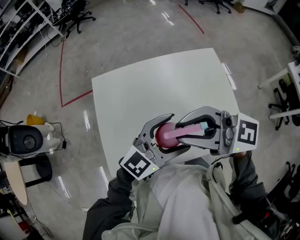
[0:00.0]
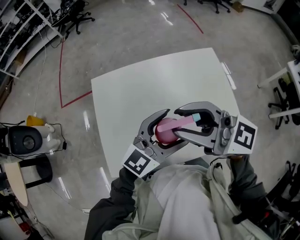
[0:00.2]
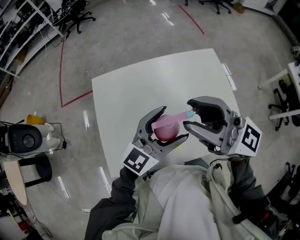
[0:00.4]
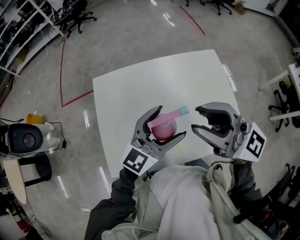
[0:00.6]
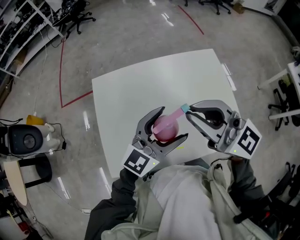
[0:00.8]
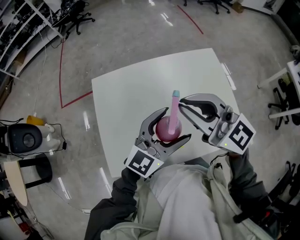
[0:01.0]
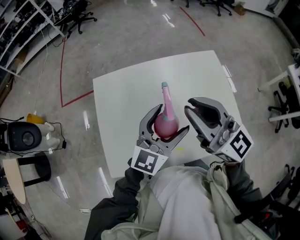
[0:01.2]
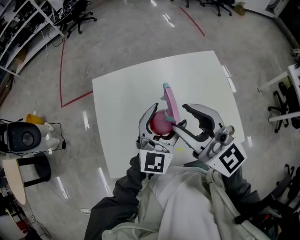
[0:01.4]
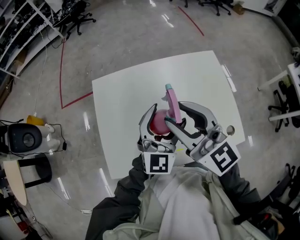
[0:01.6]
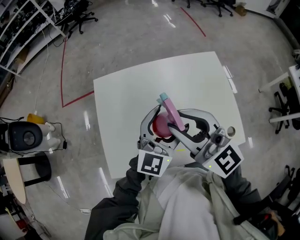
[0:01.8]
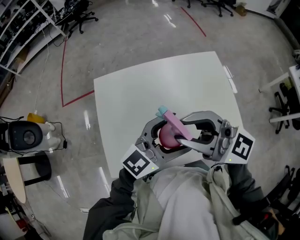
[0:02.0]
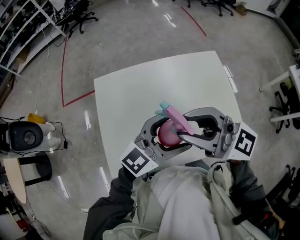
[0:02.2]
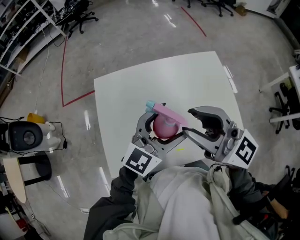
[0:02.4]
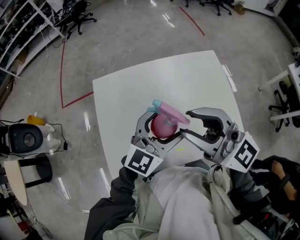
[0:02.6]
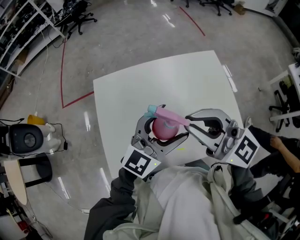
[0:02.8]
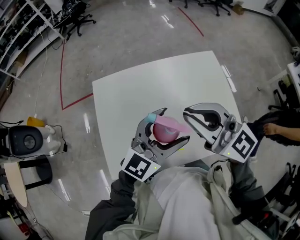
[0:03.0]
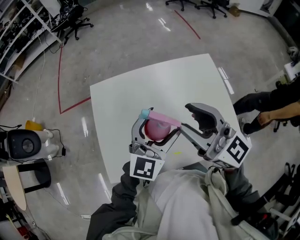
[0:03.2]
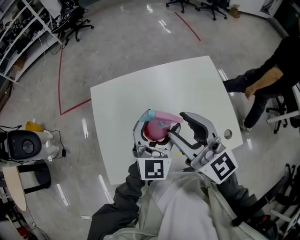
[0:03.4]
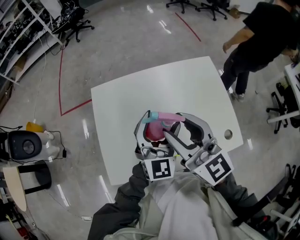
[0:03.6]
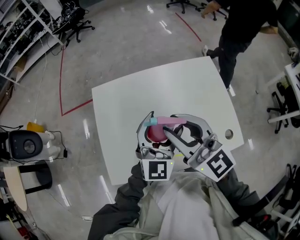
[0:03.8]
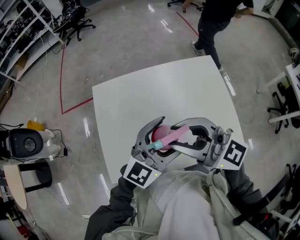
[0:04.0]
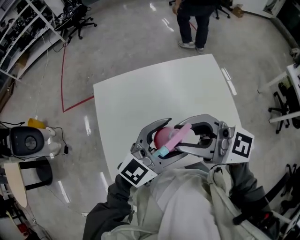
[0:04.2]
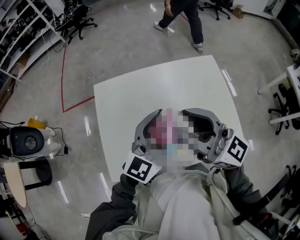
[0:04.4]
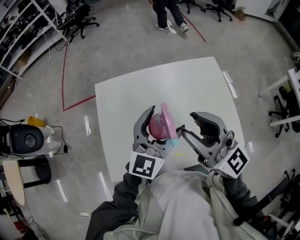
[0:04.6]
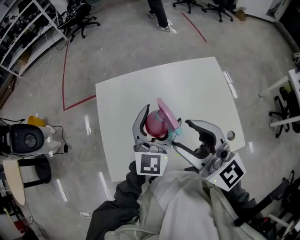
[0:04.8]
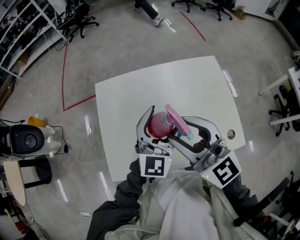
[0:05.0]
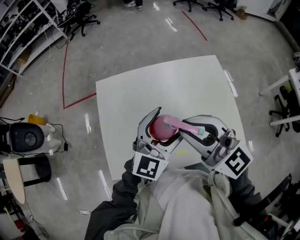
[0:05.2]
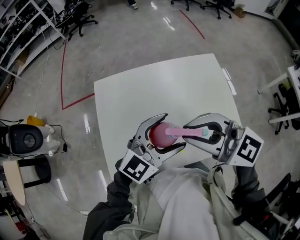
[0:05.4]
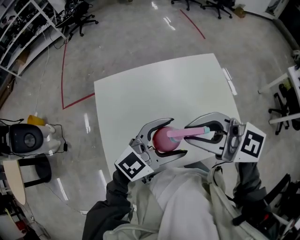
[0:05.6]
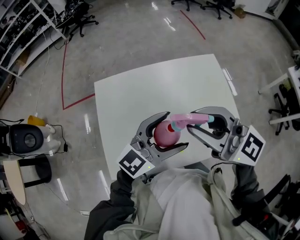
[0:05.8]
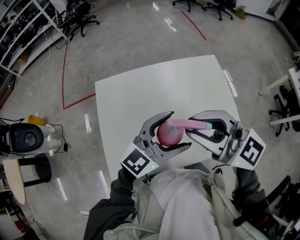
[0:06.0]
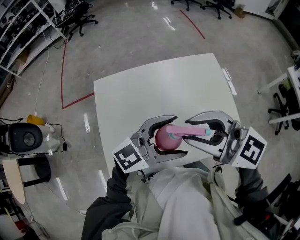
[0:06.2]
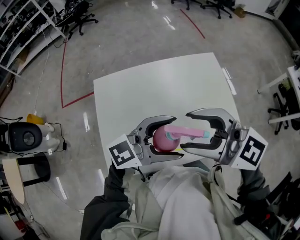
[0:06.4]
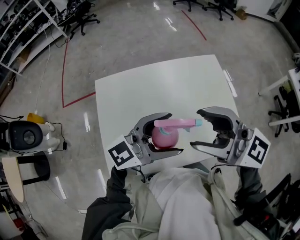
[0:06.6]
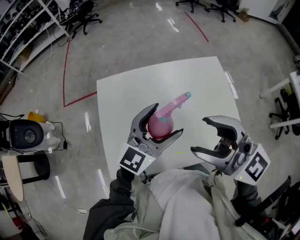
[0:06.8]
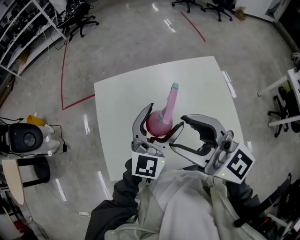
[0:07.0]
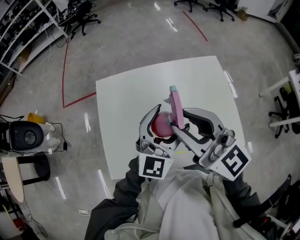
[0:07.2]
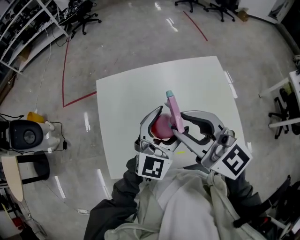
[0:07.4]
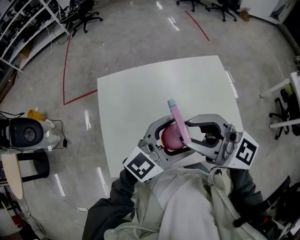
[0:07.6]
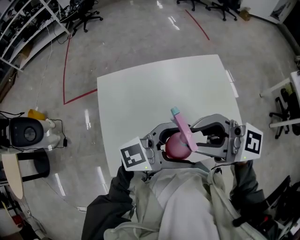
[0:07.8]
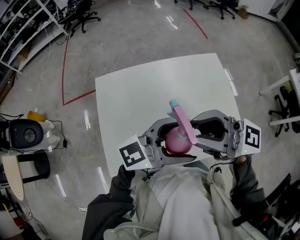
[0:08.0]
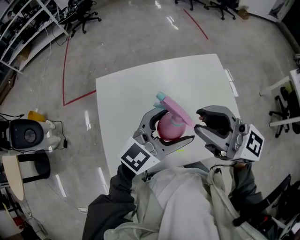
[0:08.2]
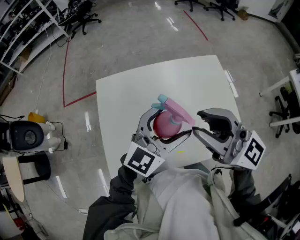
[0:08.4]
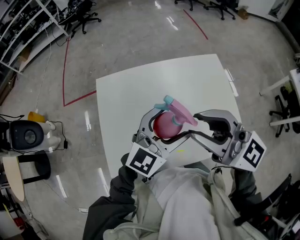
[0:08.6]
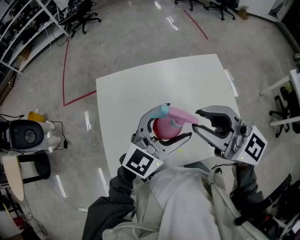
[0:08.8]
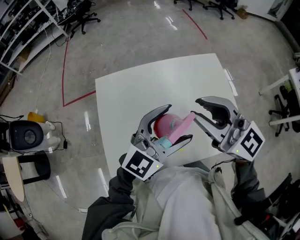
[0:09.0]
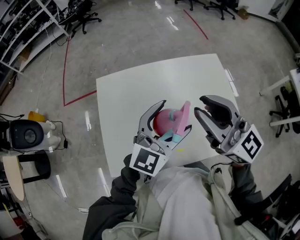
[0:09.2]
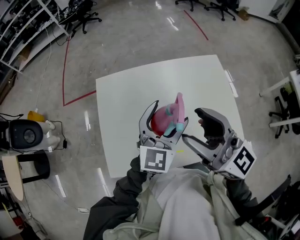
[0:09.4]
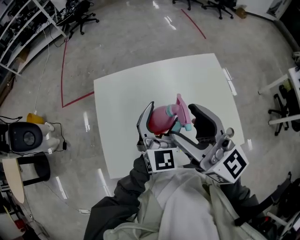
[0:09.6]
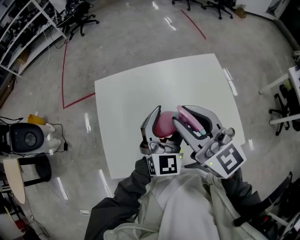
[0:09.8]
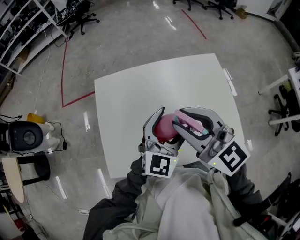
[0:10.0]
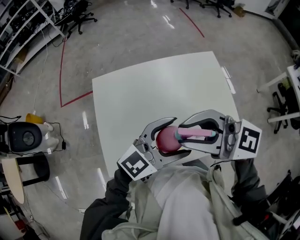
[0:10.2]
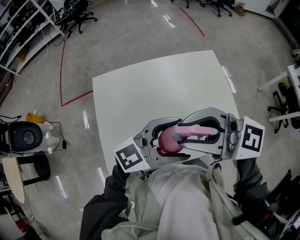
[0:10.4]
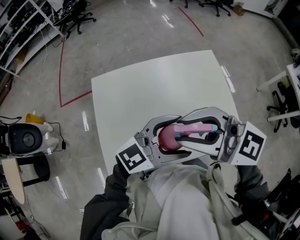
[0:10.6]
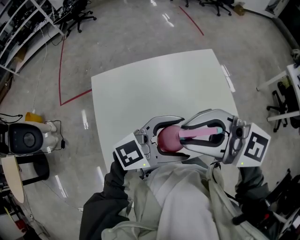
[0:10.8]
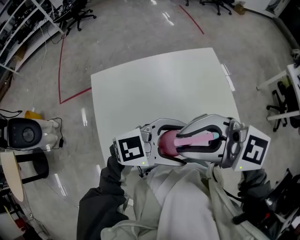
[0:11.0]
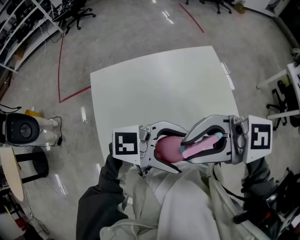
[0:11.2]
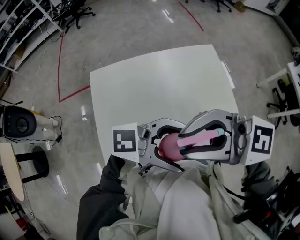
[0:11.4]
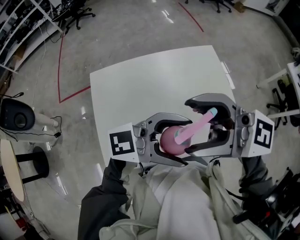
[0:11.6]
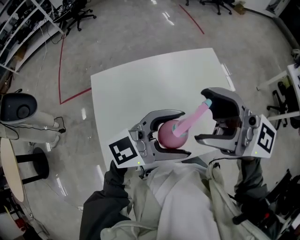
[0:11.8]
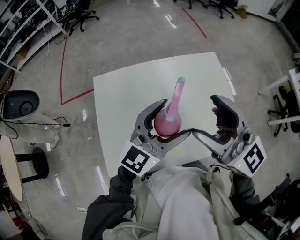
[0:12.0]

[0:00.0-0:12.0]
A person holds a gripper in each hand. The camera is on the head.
0:00.0 to 0:01.6: The right gripper moves some 5 cm, and rotates about 40 degrees. The left gripper moves roughly 10 cm, and changes its angle by roughly 40 degrees.
0:01.6 to 0:03.0: The right gripper closes up, while the left gripper ends up approximately 5 cm from where it was, and swivels about 30 degrees.
0:03.0 to 0:04.4: The right gripper opens up.
0:06.0 to 0:07.6: The right gripper opens, then closes again.
0:07.6 to 0:09.0: The right gripper changes place by approximately 5 cm.
0:09.0 to 0:10.4: The right gripper ends up roughly 5 cm from where it was, swivels some 30 degrees, and opens, then closes once more, while the left gripper changes place by some 5 cm, and swivels some 30 degrees.
0:10.4 to 0:12.0: The left gripper ends up roughly 5 cm from where it was, and changes its angle by approximately 30 degrees. The right gripper ends up approximately 5 cm from where it was, changes its angle by approximately 30 degrees, and opens up.

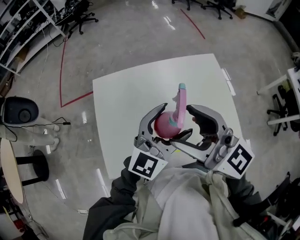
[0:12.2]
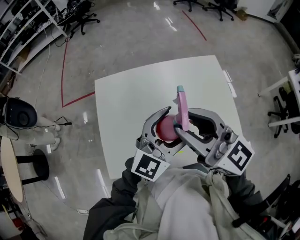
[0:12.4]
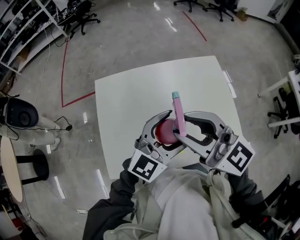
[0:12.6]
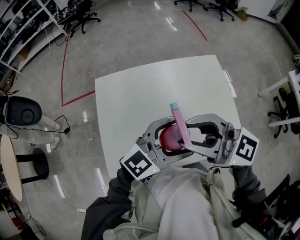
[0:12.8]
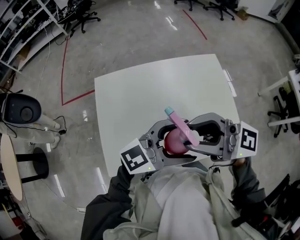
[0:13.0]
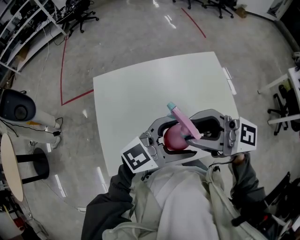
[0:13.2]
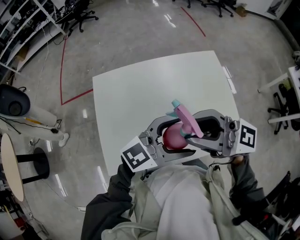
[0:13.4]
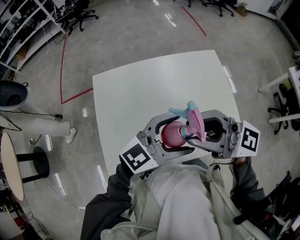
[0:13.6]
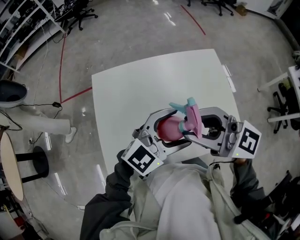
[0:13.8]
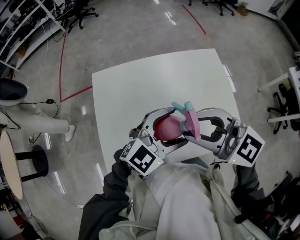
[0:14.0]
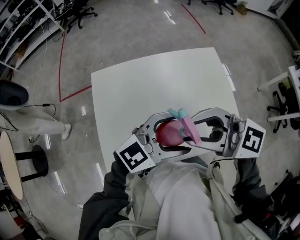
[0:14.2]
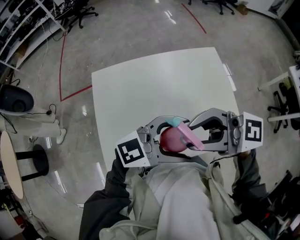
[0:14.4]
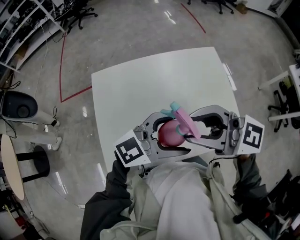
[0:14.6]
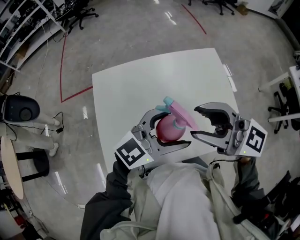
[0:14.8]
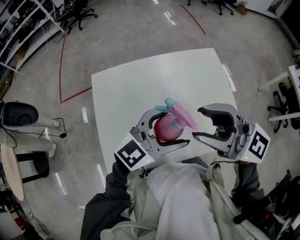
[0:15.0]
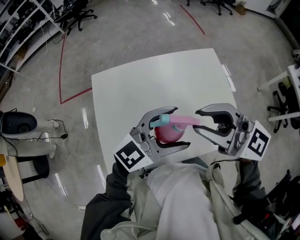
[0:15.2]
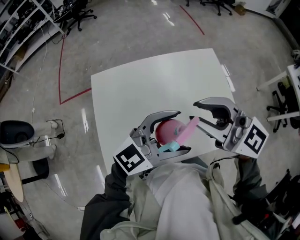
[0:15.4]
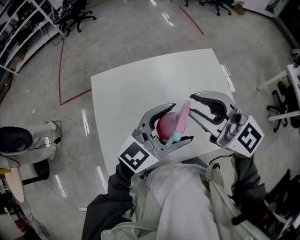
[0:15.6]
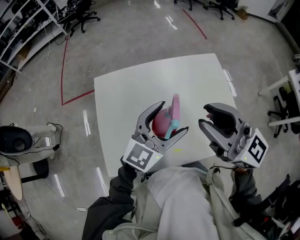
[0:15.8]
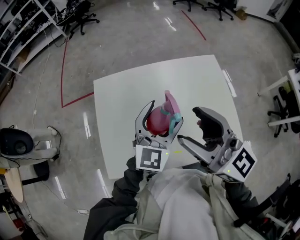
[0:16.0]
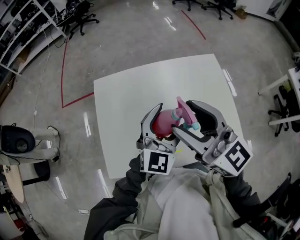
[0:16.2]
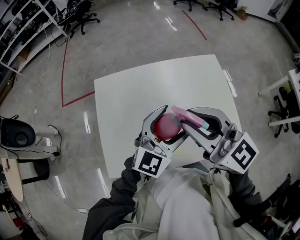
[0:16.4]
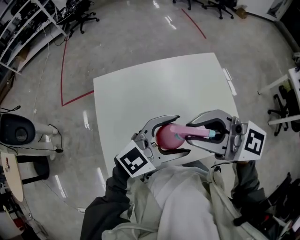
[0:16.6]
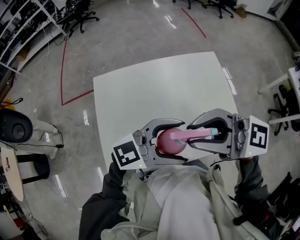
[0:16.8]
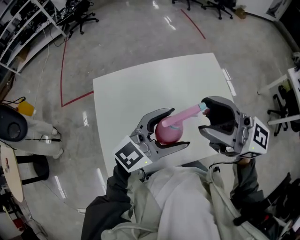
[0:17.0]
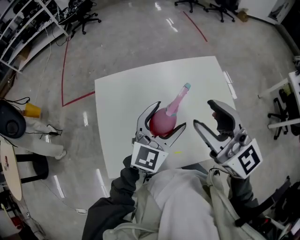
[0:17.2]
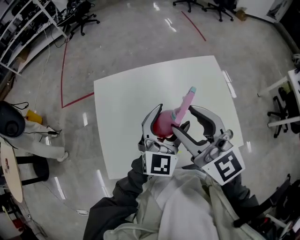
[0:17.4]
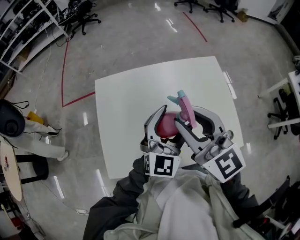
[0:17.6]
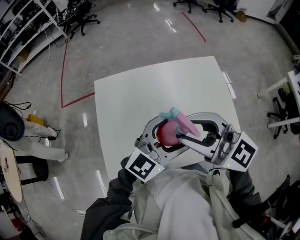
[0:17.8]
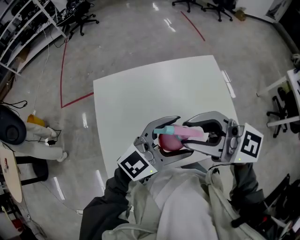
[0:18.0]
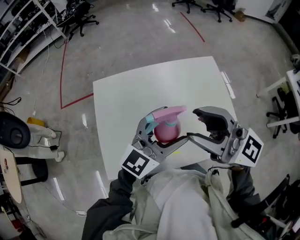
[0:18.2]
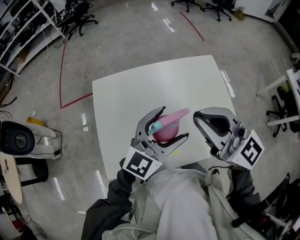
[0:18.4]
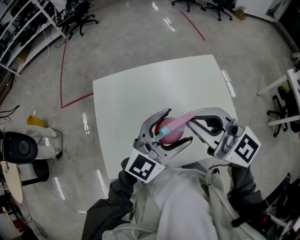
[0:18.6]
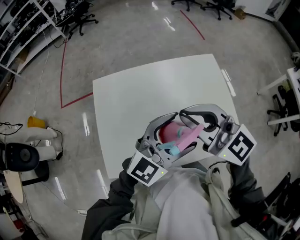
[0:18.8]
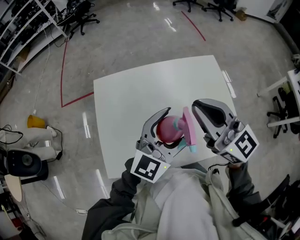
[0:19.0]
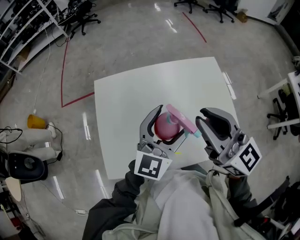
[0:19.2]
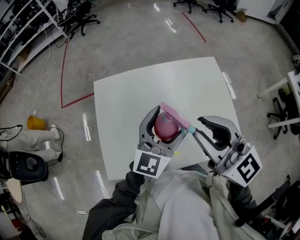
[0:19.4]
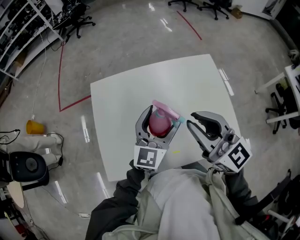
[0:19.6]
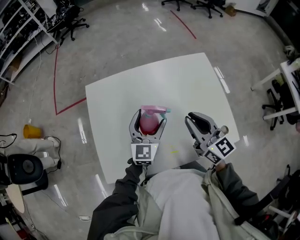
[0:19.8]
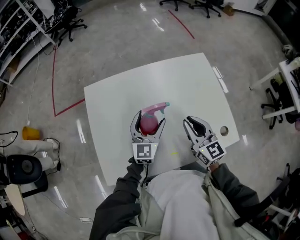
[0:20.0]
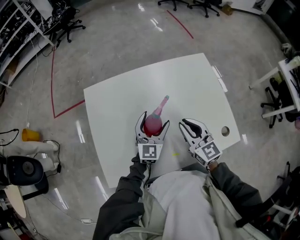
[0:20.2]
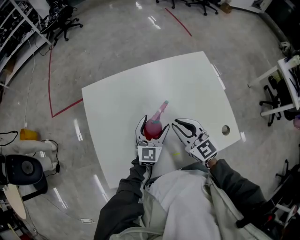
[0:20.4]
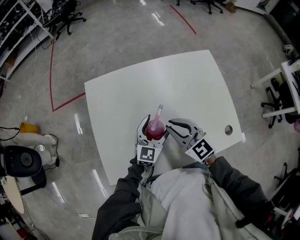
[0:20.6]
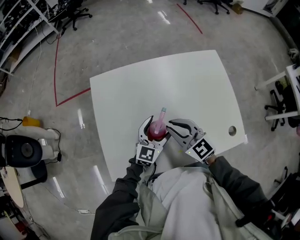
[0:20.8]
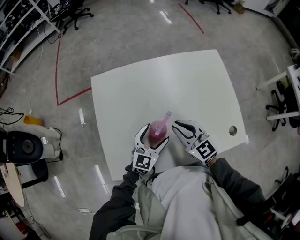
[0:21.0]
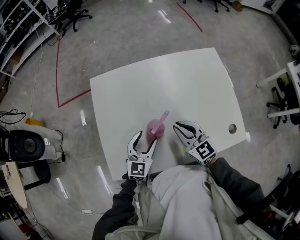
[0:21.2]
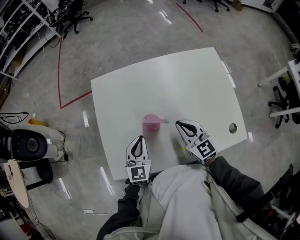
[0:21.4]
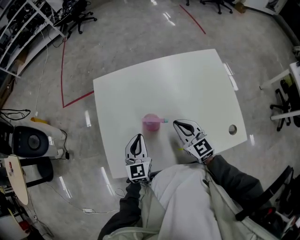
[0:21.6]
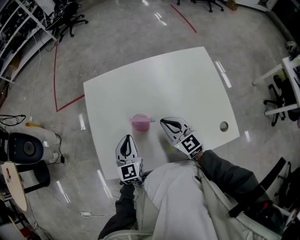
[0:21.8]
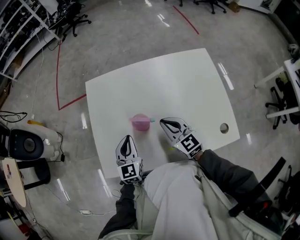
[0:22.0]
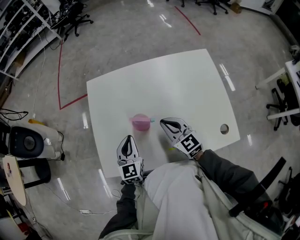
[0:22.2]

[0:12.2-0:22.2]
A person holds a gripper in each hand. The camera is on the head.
0:12.2 to 0:13.6: The right gripper swivels approximately 20 degrees, and closes. The left gripper ends up some 5 cm from where it was, and changes its angle by approximately 30 degrees.
0:15.0 to 0:16.4: The left gripper rotates about 30 degrees.
0:16.4 to 0:18.0: The right gripper rotates approximately 20 degrees. Meanwhile the left gripper shifts by roughly 5 cm, and turns by about 30 degrees.
0:18.0 to 0:19.4: The left gripper moves some 10 cm, and swivels about 40 degrees; the right gripper changes its angle by roughly 30 degrees.
0:19.4 to 0:20.8: The two grippers go roughly 25 cm downward. The right gripper swivels roughly 20 degrees.
0:20.8 to 0:22.2: The left gripper goes approximately 10 cm to the left, turns by approximately 30 degrees, and closes.

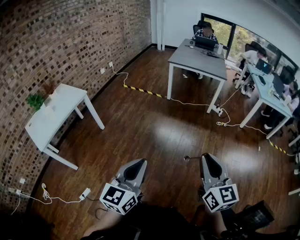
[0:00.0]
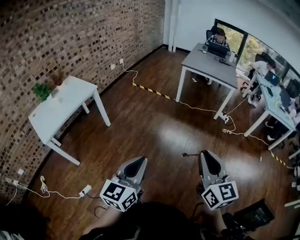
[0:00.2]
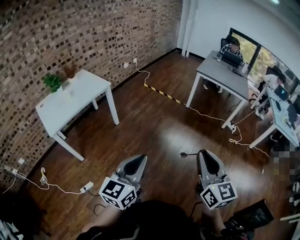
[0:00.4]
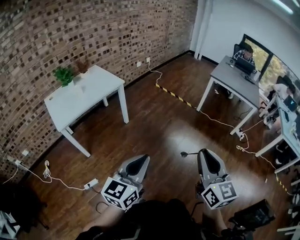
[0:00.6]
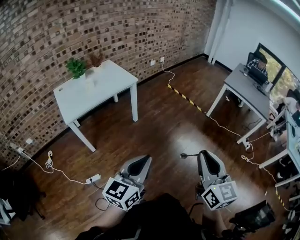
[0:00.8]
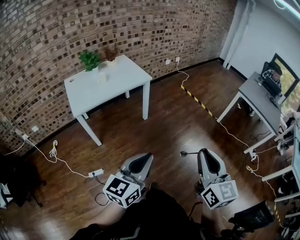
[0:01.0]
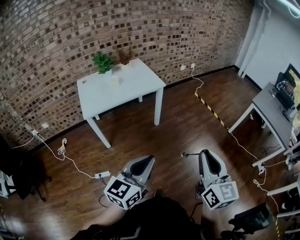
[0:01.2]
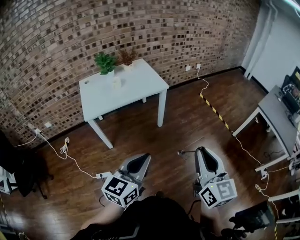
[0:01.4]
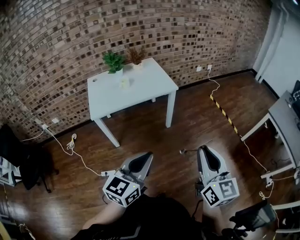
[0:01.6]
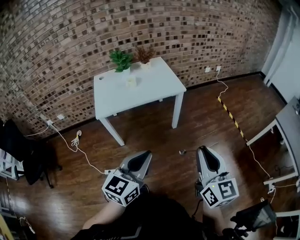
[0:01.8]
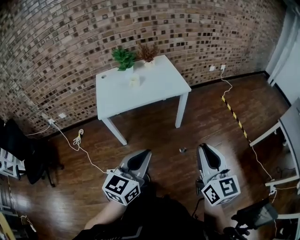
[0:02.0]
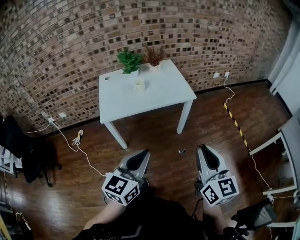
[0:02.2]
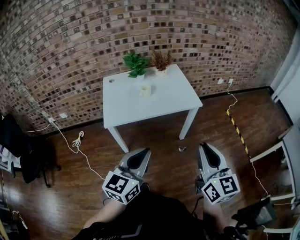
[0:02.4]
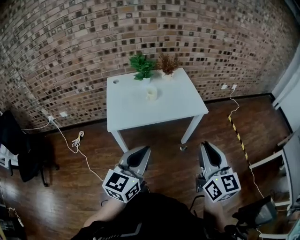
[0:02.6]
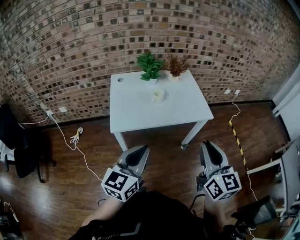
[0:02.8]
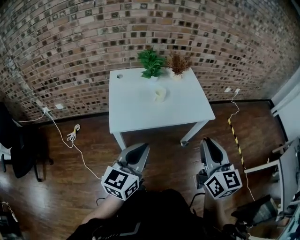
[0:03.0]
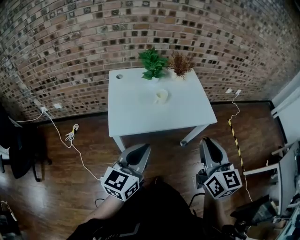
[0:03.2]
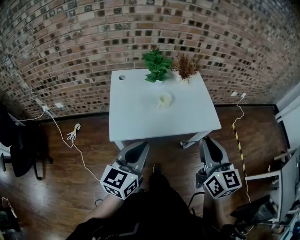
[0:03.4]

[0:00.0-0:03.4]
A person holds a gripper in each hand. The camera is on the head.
0:00.0 to 0:01.6: Both grippers are carried roughly 50 cm. The left gripper rotates approximately 40 degrees, while the right gripper changes its angle by some 40 degrees.
0:01.6 to 0:03.4: The two grippers travel together, forward and to the left, about 50 cm.
